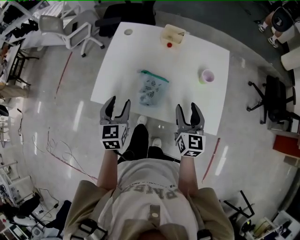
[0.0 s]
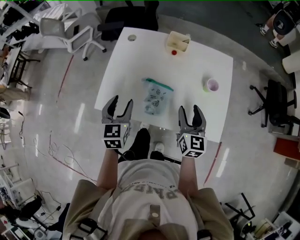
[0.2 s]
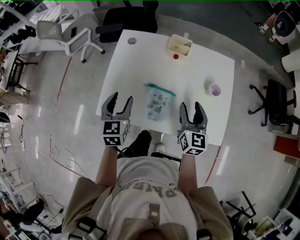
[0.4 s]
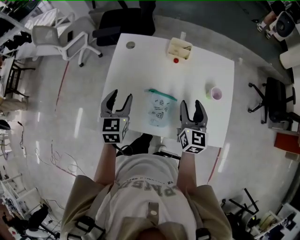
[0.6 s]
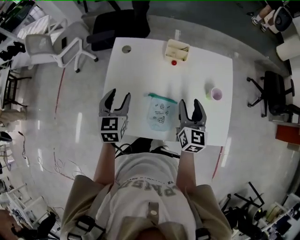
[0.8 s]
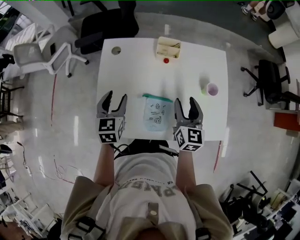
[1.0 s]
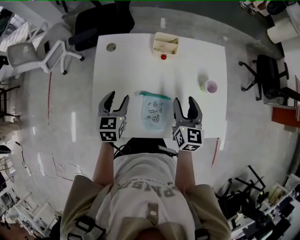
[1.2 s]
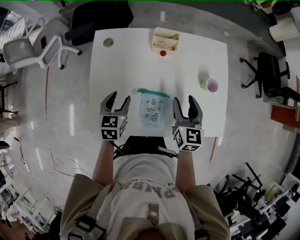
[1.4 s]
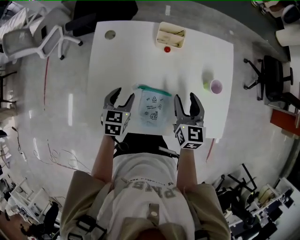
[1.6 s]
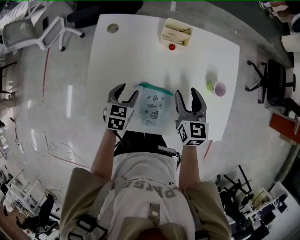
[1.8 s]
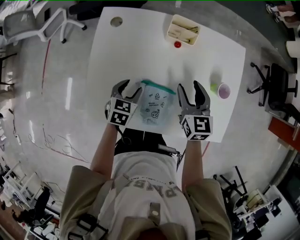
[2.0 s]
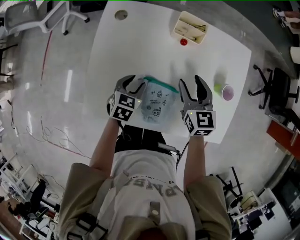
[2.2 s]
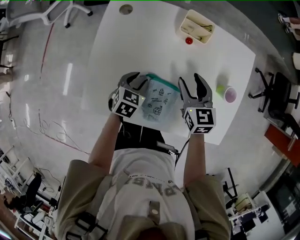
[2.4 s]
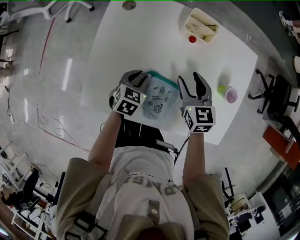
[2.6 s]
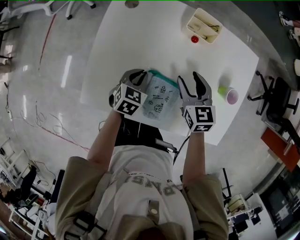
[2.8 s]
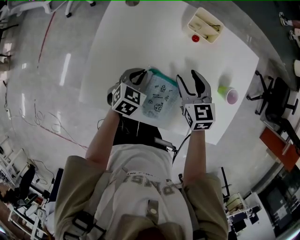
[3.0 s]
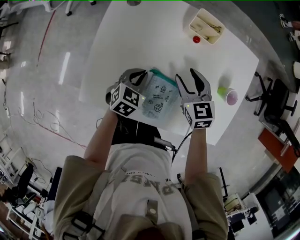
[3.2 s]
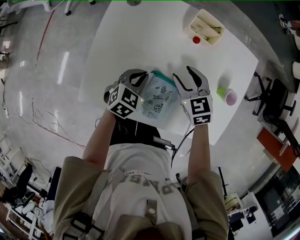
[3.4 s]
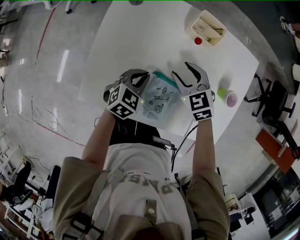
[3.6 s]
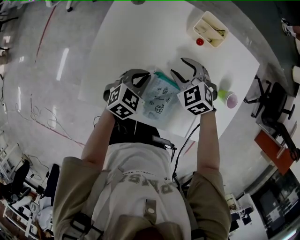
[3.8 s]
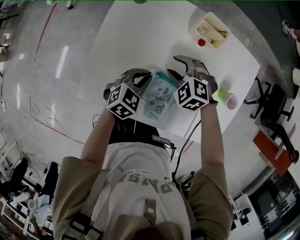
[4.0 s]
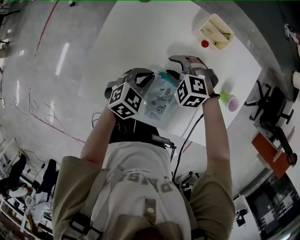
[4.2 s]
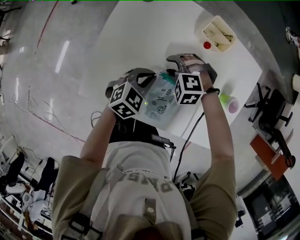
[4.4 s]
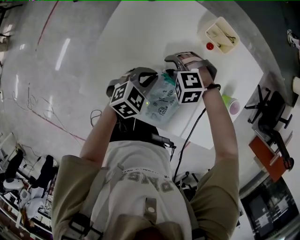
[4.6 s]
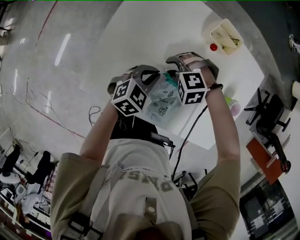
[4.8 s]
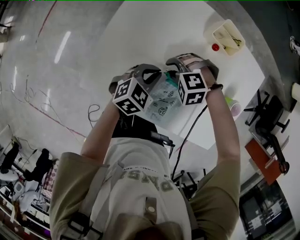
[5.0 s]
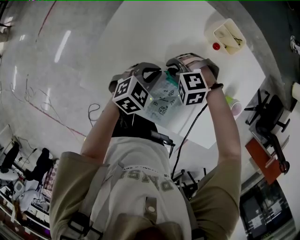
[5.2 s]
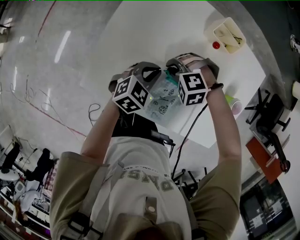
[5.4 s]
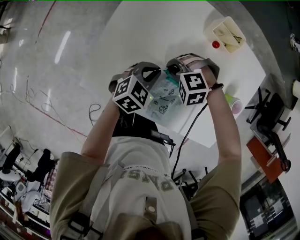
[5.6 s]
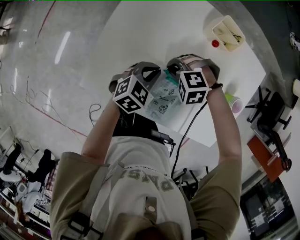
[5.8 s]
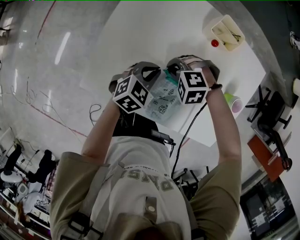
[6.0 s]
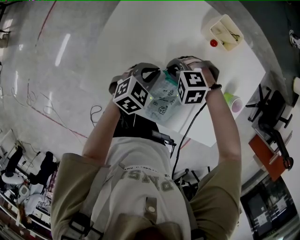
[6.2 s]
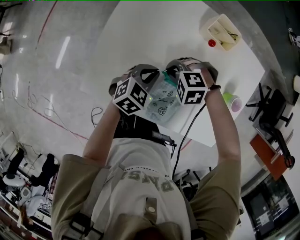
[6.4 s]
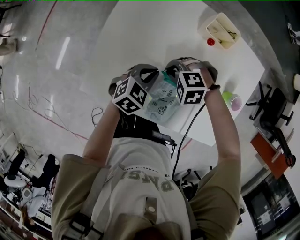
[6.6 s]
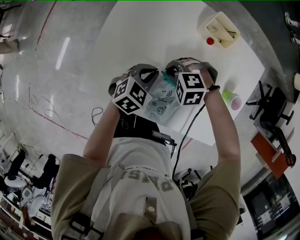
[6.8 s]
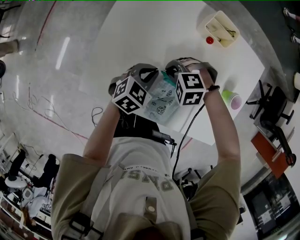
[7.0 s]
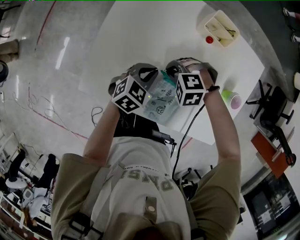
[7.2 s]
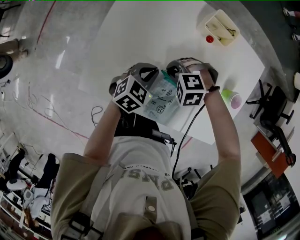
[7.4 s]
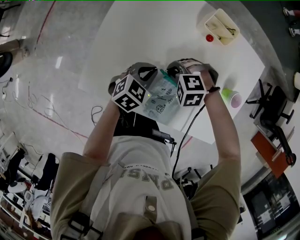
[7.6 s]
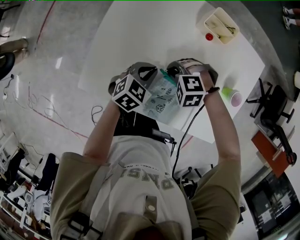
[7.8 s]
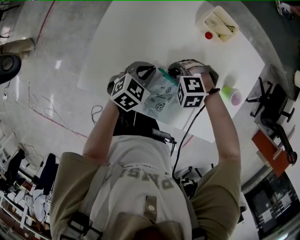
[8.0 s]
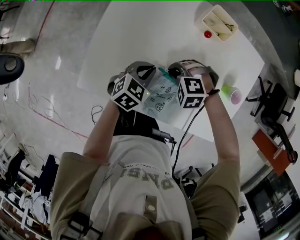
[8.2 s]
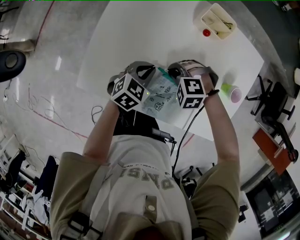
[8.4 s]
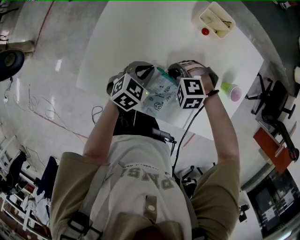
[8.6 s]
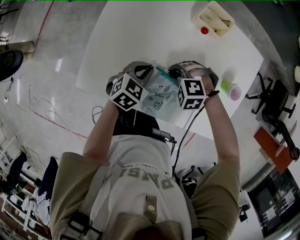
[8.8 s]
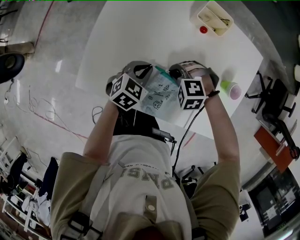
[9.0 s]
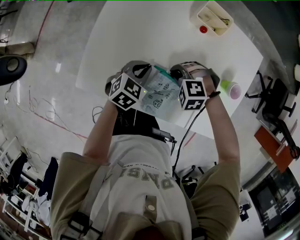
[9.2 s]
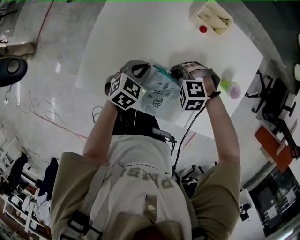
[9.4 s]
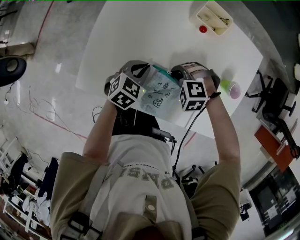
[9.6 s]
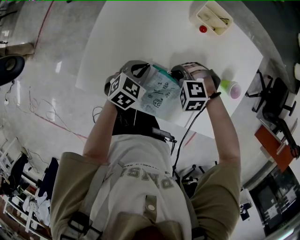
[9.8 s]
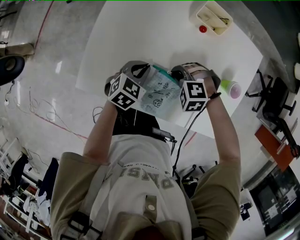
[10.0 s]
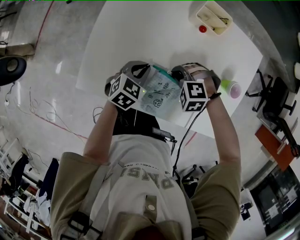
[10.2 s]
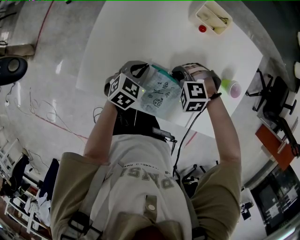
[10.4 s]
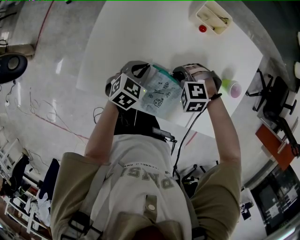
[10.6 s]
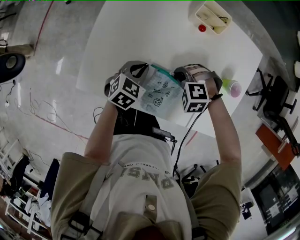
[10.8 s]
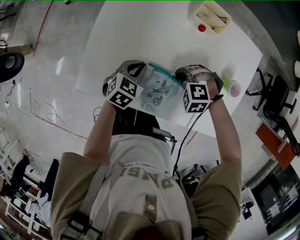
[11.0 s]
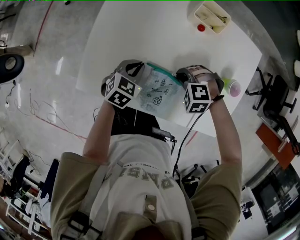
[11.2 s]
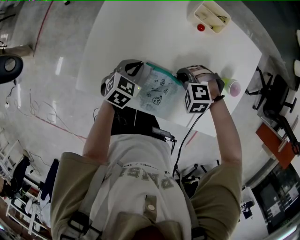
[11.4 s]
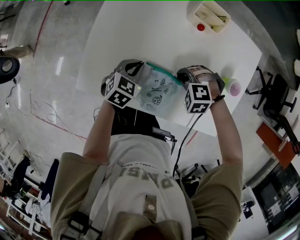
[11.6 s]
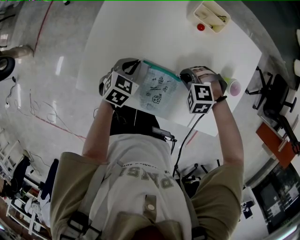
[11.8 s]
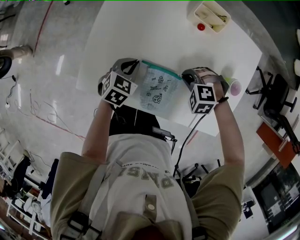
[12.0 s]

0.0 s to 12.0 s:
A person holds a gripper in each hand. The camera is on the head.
0.0 to 1.6 s: The right gripper heads forward, covering about 15 cm. The left gripper shifts approximately 20 cm forward and downward, and swivels some 30 degrees.
1.6 to 3.0 s: The right gripper travels to the left and downward by some 10 cm, and swivels about 30 degrees; the left gripper travels downward by approximately 5 cm, and closes up.
3.0 to 4.4 s: The right gripper heads downward and to the left, covering some 15 cm, and twists about 70 degrees counterclockwise, seen from behind.
4.4 to 6.0 s: The right gripper closes.
6.0 to 7.6 s: The grippers stay close to where they were, moving slightly.
7.6 to 10.4 s: The grippers make only small movements.
10.4 to 12.0 s: The right gripper moves some 5 cm.

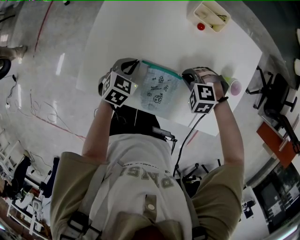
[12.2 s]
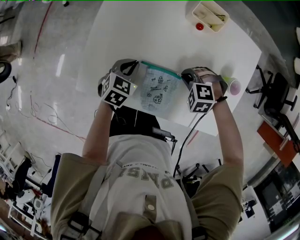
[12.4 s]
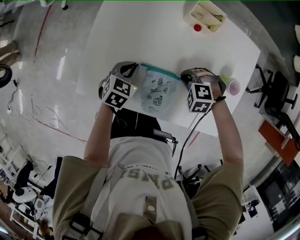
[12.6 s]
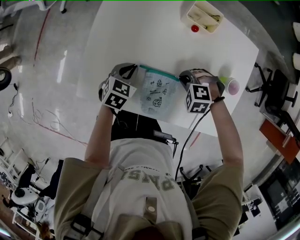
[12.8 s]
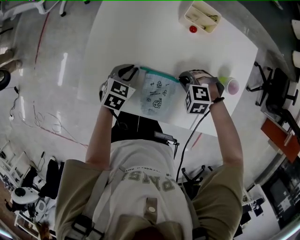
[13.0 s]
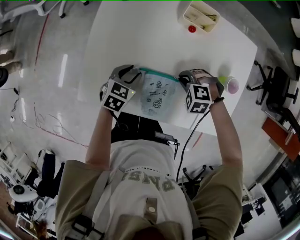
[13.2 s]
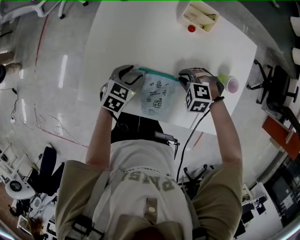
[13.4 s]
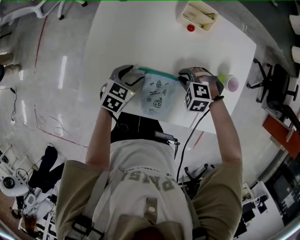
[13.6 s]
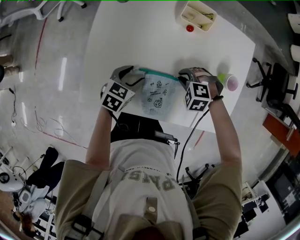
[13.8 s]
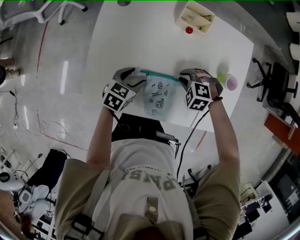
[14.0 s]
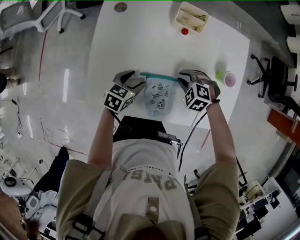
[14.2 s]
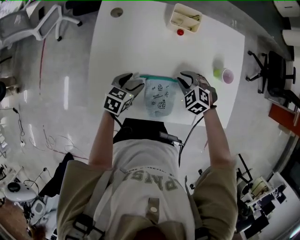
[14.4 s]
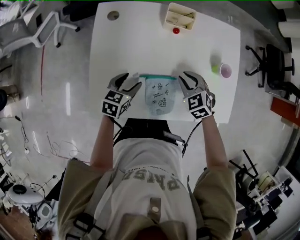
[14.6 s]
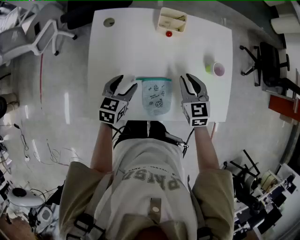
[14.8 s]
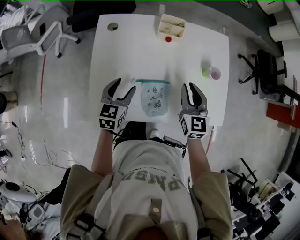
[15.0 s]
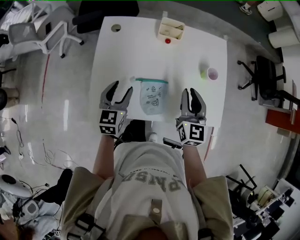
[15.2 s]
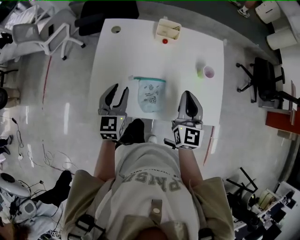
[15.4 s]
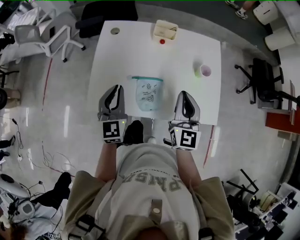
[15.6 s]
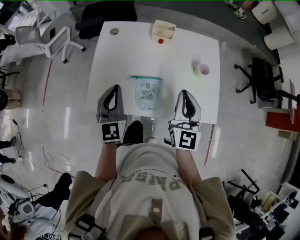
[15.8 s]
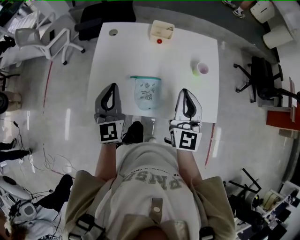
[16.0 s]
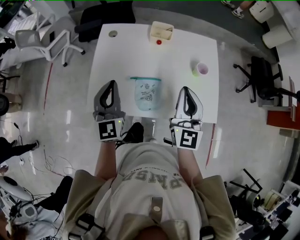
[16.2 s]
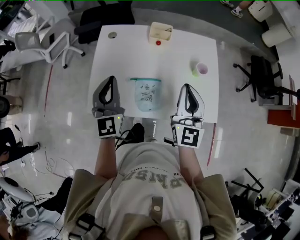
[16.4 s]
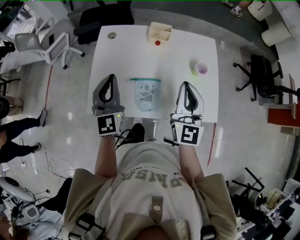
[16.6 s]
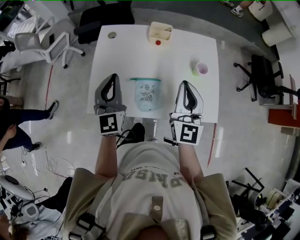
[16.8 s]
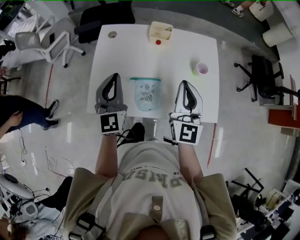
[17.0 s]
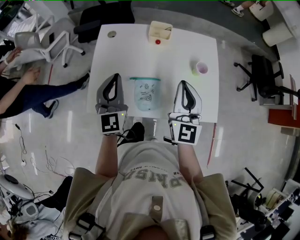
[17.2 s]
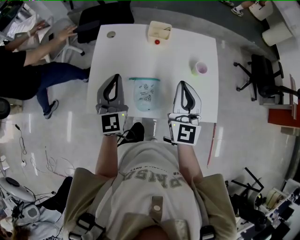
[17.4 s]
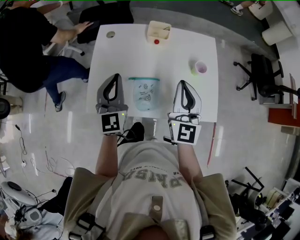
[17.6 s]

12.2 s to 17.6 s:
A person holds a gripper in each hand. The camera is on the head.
12.2 to 13.6 s: The left gripper opens its fingers.
13.6 to 15.0 s: The right gripper heads upward, covering roughly 20 cm, and points its fingers roughly 60 degrees further upward. Meanwhile the left gripper heads upward, covering about 10 cm.
15.0 to 16.2 s: The two grippers go approximately 20 cm upward and backward. The left gripper rotates approximately 40 degrees, and closes, while the right gripper swivels approximately 20 degrees, and closes its fingers.
16.2 to 17.6 s: The grippers stay close to where they were, moving slightly.

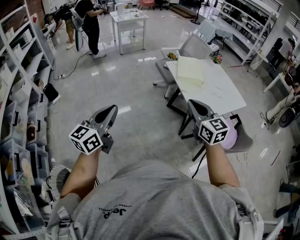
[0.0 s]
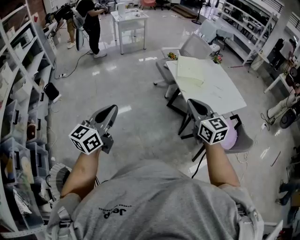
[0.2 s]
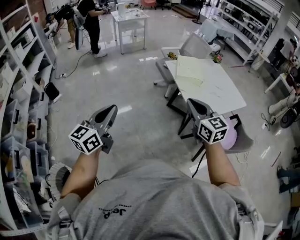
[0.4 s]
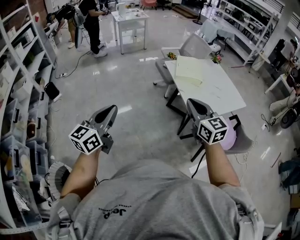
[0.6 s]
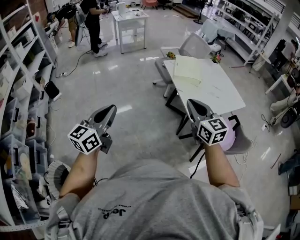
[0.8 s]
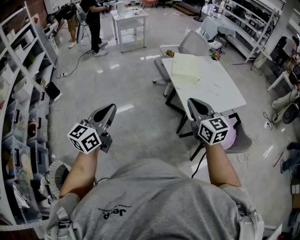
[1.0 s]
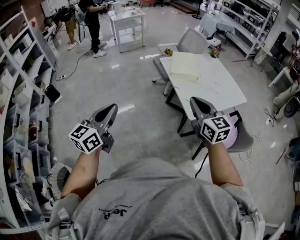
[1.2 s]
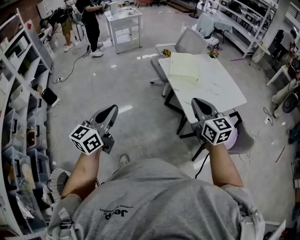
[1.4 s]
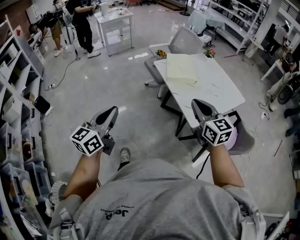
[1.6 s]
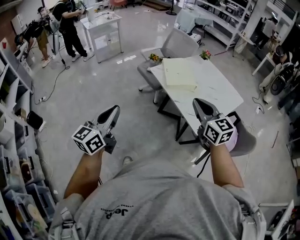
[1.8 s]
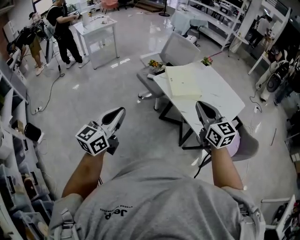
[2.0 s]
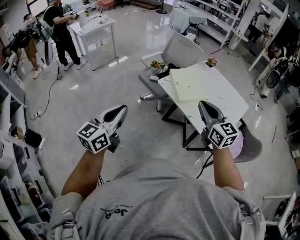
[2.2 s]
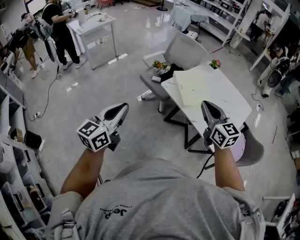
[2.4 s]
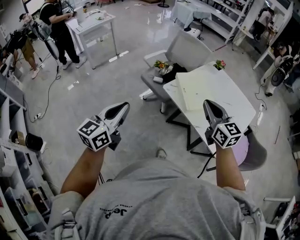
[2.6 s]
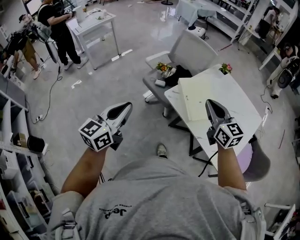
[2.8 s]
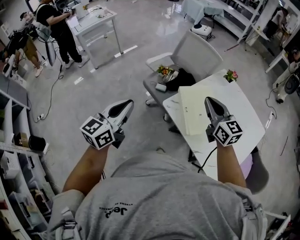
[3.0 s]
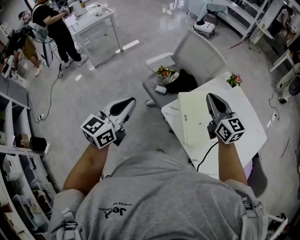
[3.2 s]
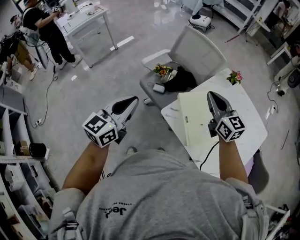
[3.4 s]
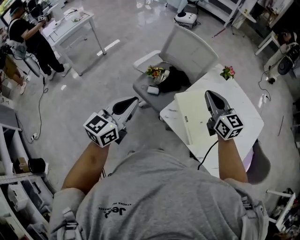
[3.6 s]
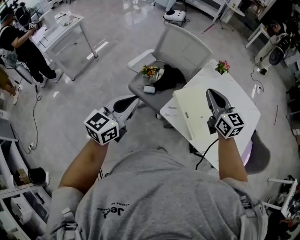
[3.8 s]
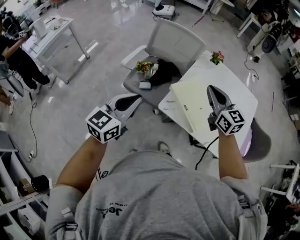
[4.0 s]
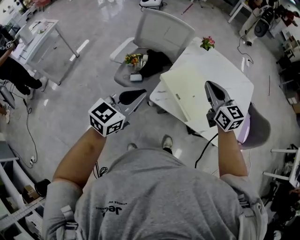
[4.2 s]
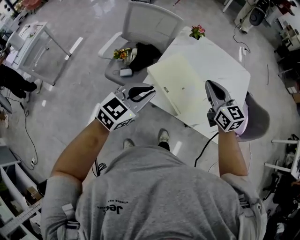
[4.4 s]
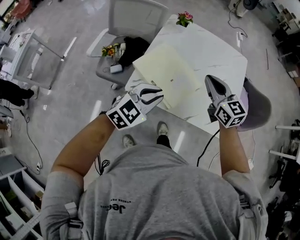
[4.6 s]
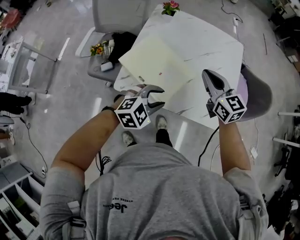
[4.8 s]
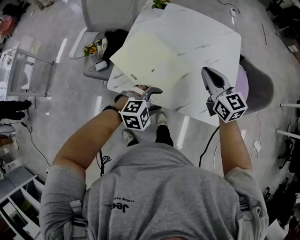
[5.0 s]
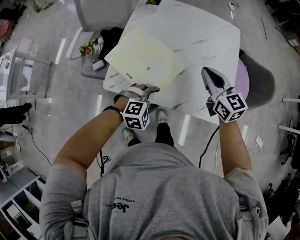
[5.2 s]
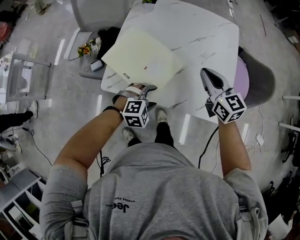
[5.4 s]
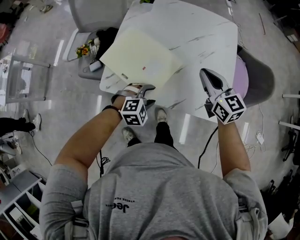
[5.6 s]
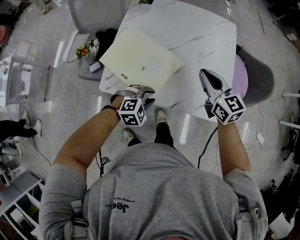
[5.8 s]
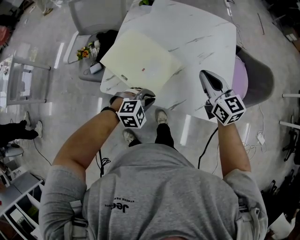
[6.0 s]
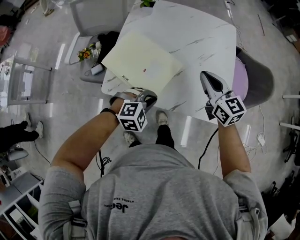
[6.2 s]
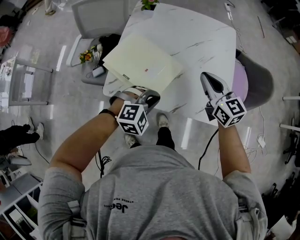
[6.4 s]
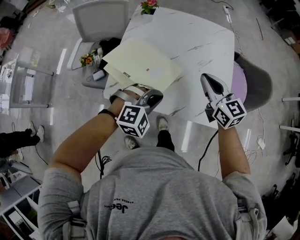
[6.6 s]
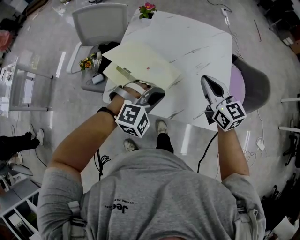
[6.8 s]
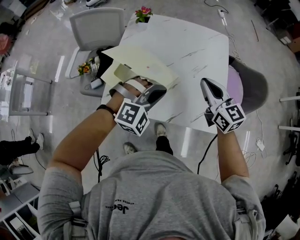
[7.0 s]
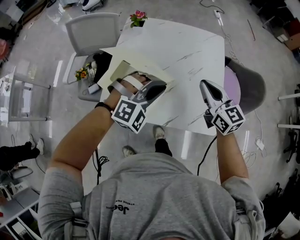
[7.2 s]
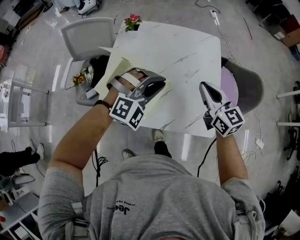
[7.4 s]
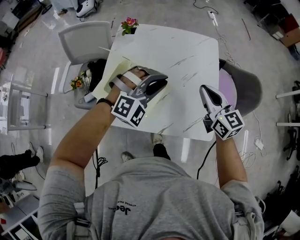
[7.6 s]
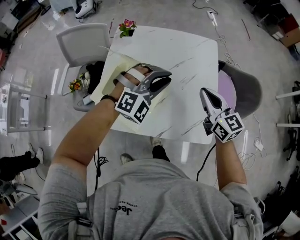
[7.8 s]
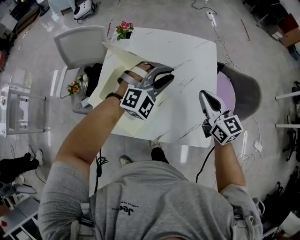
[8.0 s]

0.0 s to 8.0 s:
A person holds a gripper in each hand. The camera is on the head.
0.0 to 1.6 s: The left gripper goes approximately 15 cm forward and to the right; the right gripper goes approximately 15 cm to the right and forward.
1.6 to 3.2 s: The two grippers travel together, forward, roughly 60 cm.
3.2 to 4.8 s: The left gripper changes place by approximately 40 cm, tips its fingers downward by about 40 degrees, and opens its fingers, while the right gripper ends up roughly 25 cm from where it was, and swivels roughly 30 degrees.
4.8 to 6.4 s: The right gripper is displaced to the right by approximately 5 cm, while the left gripper moves about 15 cm downward and comes back, swivels about 20 degrees, and opens, then closes again.
6.4 to 8.0 s: The right gripper heads to the right and forward, covering roughly 10 cm, while the left gripper moves forward, upward and to the right, about 25 cm, and rotates about 30 degrees.
